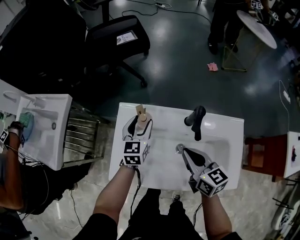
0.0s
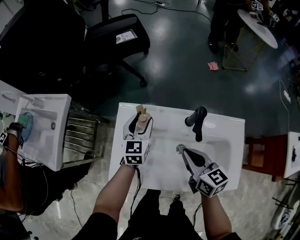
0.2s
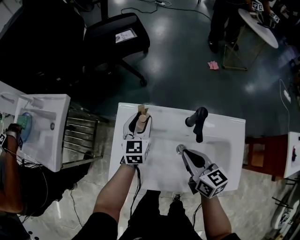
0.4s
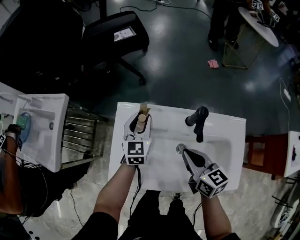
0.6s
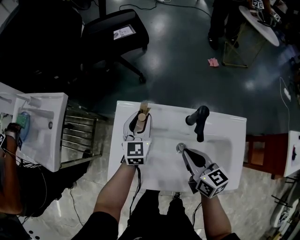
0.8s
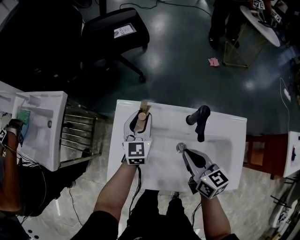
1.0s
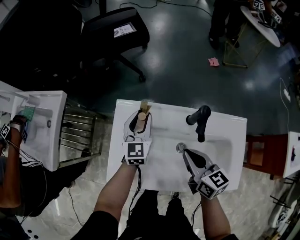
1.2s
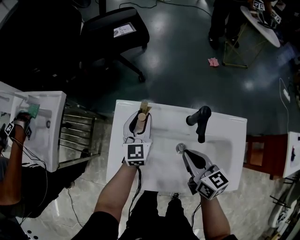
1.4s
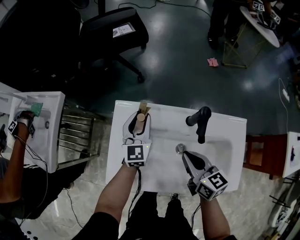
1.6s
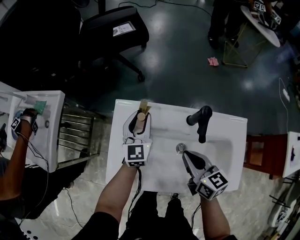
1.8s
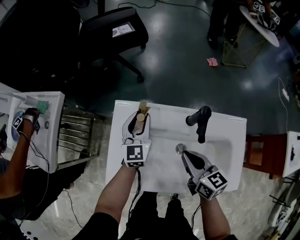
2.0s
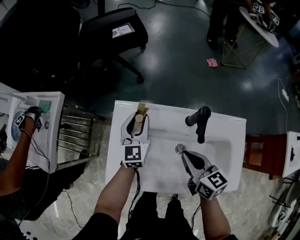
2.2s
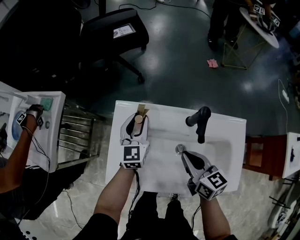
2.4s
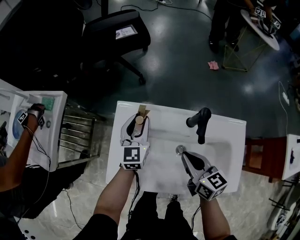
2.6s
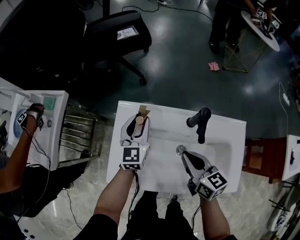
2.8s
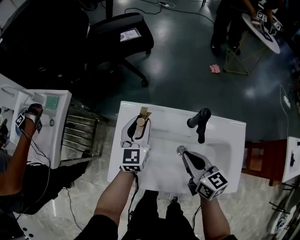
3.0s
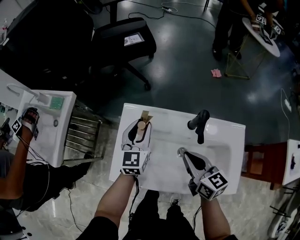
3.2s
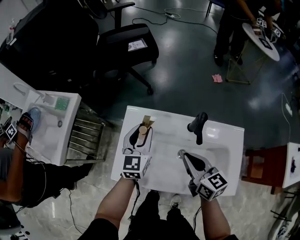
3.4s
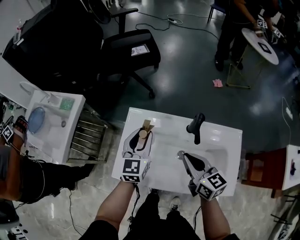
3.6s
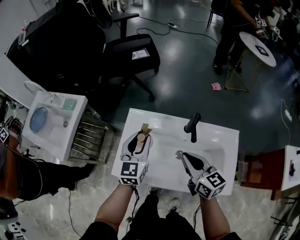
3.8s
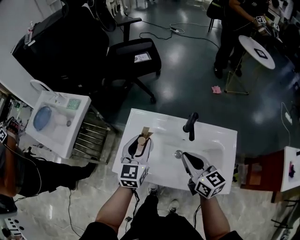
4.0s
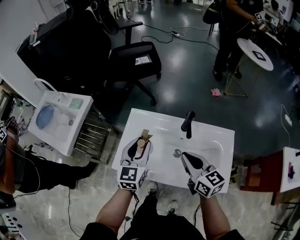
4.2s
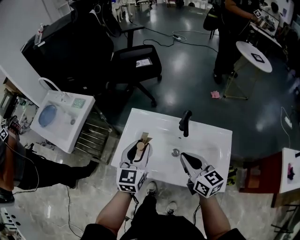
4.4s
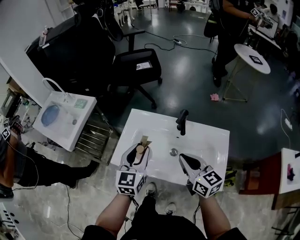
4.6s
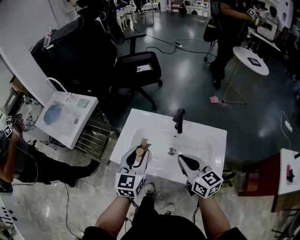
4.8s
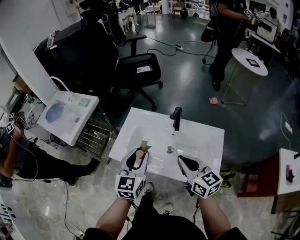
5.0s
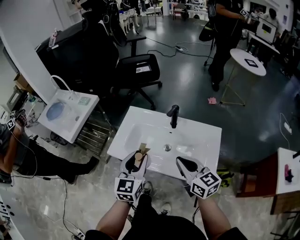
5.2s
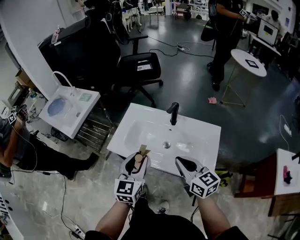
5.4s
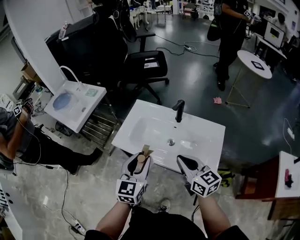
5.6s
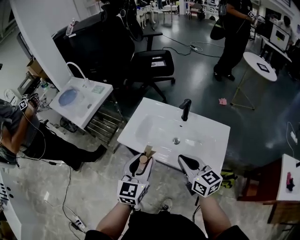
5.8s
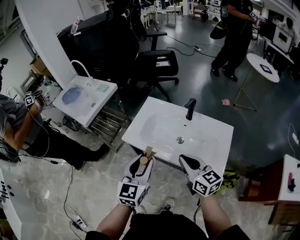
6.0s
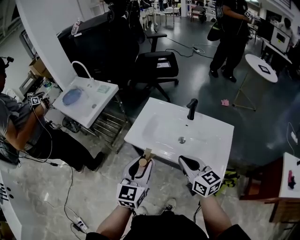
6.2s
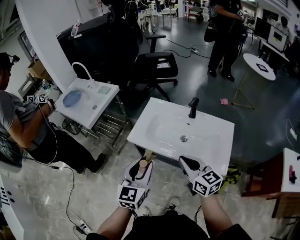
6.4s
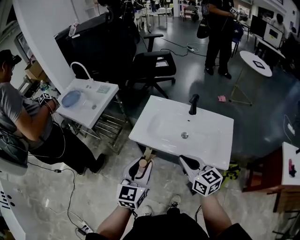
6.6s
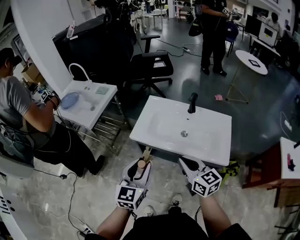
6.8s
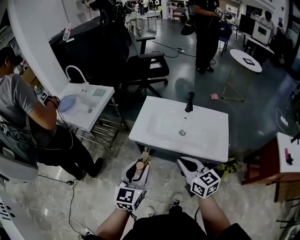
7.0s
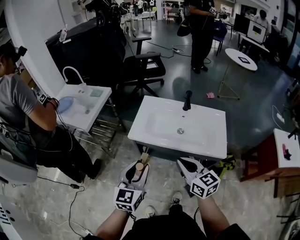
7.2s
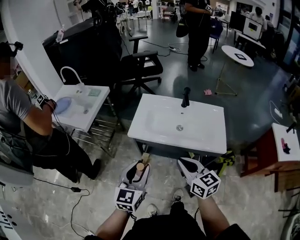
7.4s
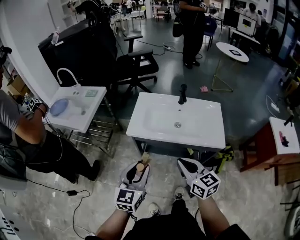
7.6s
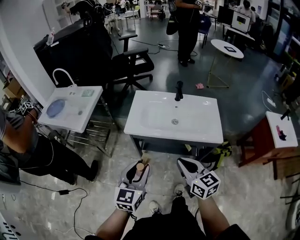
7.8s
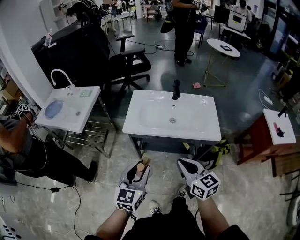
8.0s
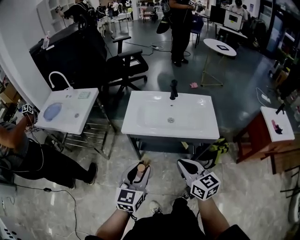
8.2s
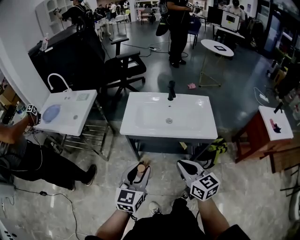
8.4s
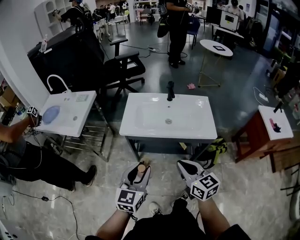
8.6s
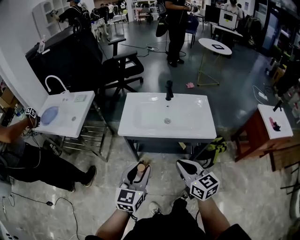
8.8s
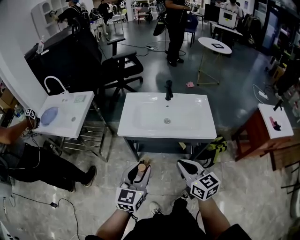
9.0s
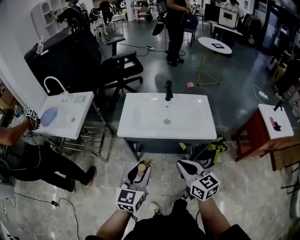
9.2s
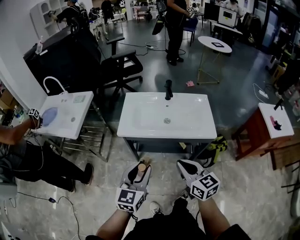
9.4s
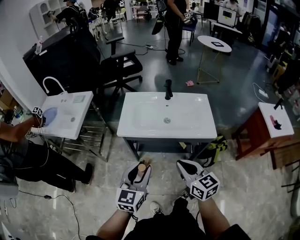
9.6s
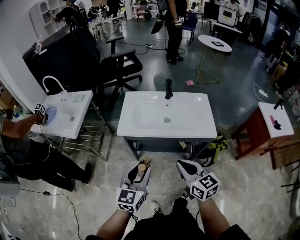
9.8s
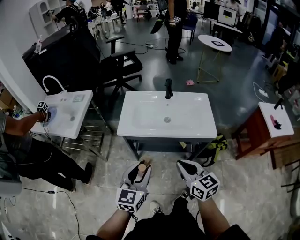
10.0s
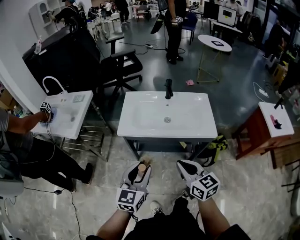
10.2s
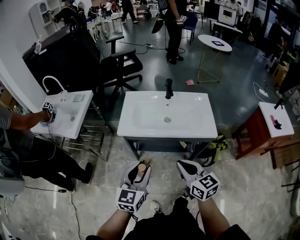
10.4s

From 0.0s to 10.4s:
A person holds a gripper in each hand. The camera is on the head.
From 0.0s to 1.4s: The left gripper closes its fingers.
From 1.4s to 3.0s: The grippers stay close to where they were, moving slightly.
From 3.0s to 4.4s: The left gripper goes roughly 20 cm backward and upward; the right gripper shifts about 15 cm upward and backward.
From 4.4s to 6.0s: The left gripper shifts roughly 20 cm backward, while the right gripper goes roughly 15 cm backward.
From 6.0s to 7.4s: Both grippers move to the left and backward, approximately 15 cm.
From 7.4s to 9.0s: The right gripper is displaced backward by approximately 5 cm.
From 9.0s to 10.4s: Both grippers stay about where they are.

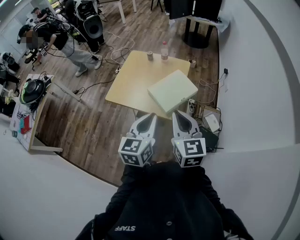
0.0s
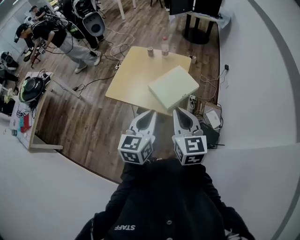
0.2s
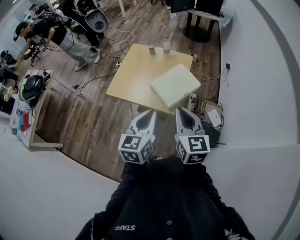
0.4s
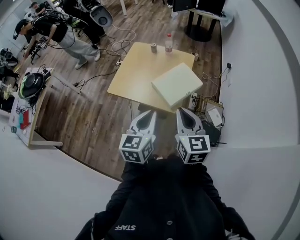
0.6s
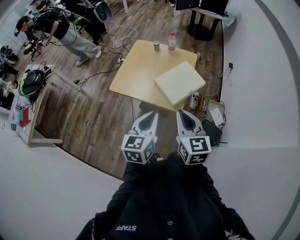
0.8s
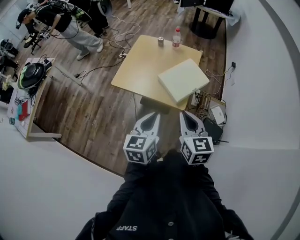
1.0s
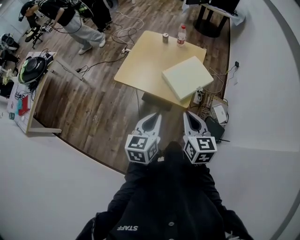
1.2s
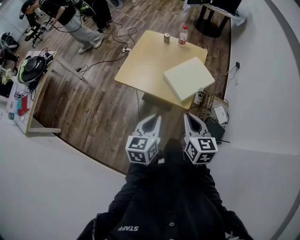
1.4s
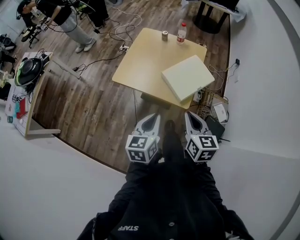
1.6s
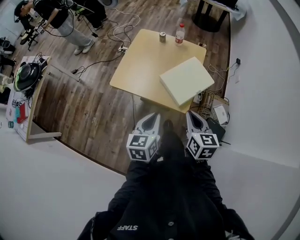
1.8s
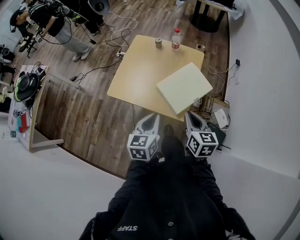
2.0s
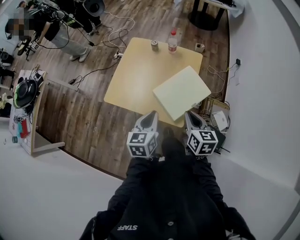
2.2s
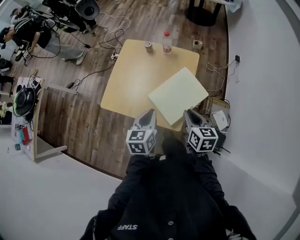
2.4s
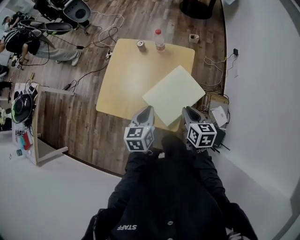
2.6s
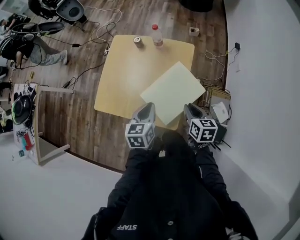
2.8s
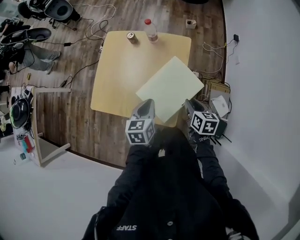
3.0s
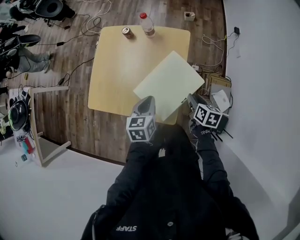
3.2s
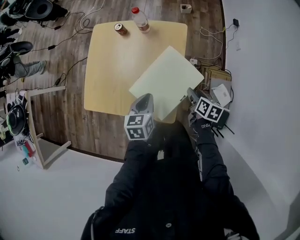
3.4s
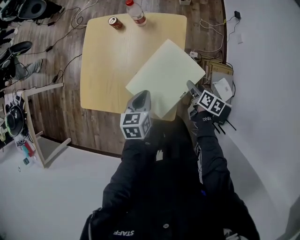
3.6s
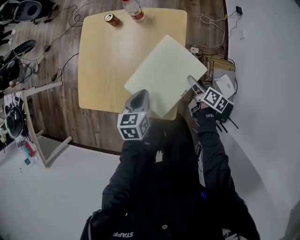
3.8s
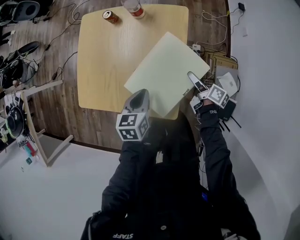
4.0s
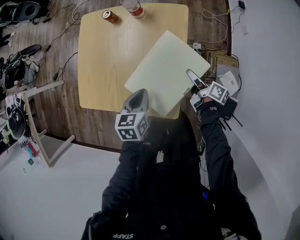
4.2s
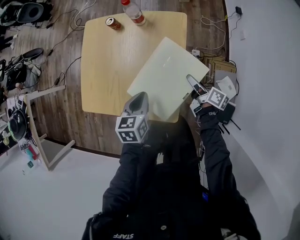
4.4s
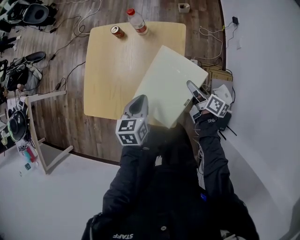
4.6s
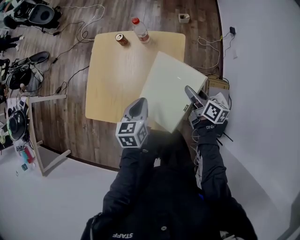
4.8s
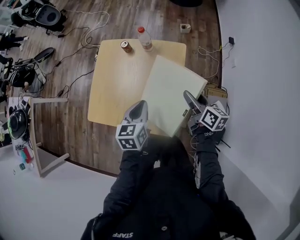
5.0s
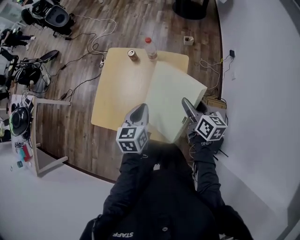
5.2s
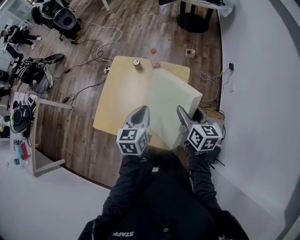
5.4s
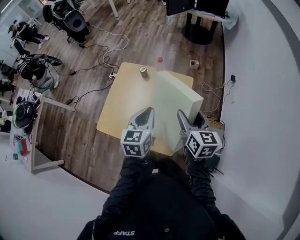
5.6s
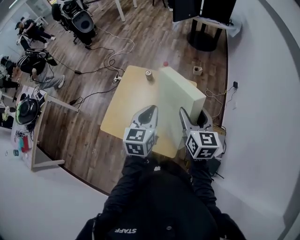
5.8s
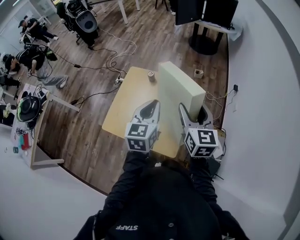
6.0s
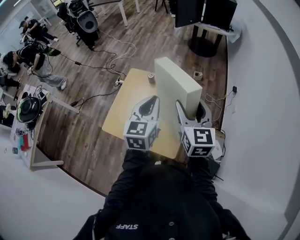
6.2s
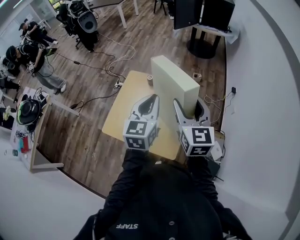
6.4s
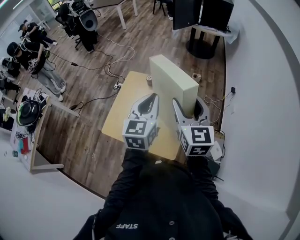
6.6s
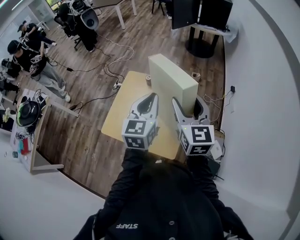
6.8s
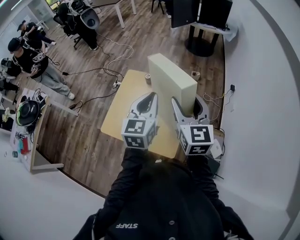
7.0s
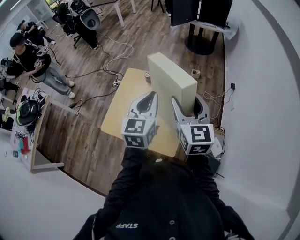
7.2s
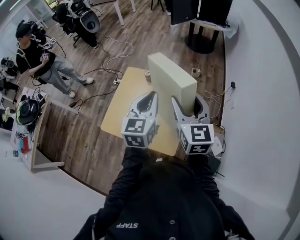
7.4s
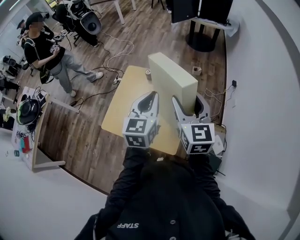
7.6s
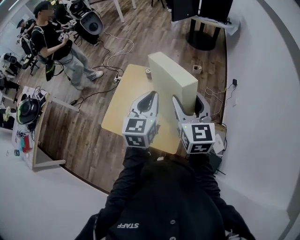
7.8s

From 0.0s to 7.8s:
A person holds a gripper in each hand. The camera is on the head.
From 0.0s to 1.6s: Both grippers move downward and to the left, about 15 cm.
From 1.6s to 3.2s: Both grippers travel together forward, downward and to the right, roughly 40 cm. The right gripper swivels about 40 degrees.
From 3.2s to 4.6s: The right gripper heads forward, covering approximately 5 cm, reaches roughly 10 cm downward, then returns, and turns by about 30 degrees.
From 4.6s to 6.2s: Both grippers travel together upward, approximately 35 cm. The left gripper rotates some 30 degrees. The right gripper rotates around the line of its fingers by roughly 60 degrees, counterclockwise from behind.
From 6.2s to 7.8s: There are only small adjustments of the grippers.

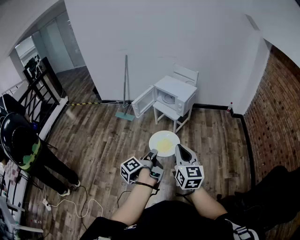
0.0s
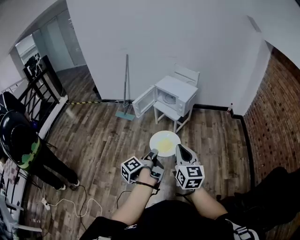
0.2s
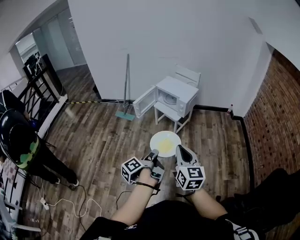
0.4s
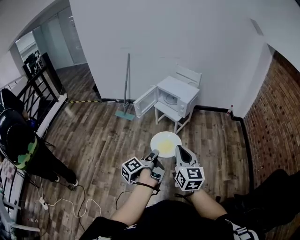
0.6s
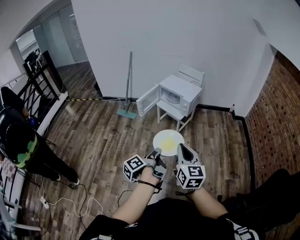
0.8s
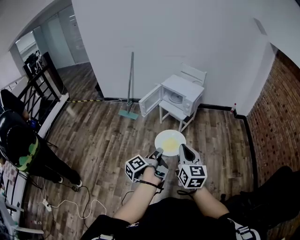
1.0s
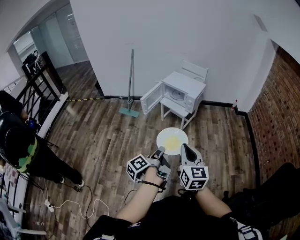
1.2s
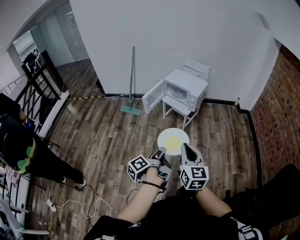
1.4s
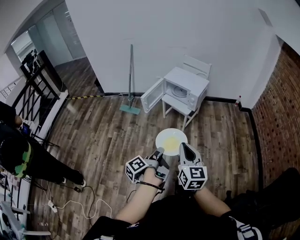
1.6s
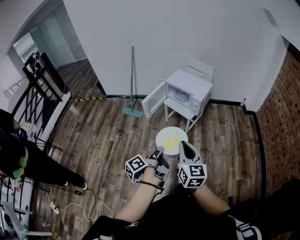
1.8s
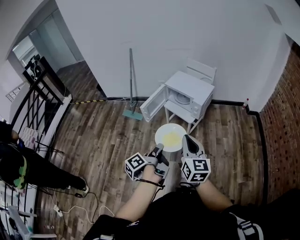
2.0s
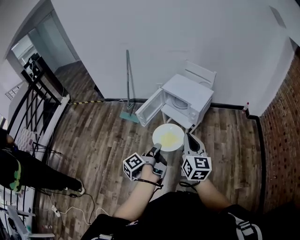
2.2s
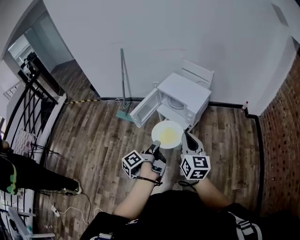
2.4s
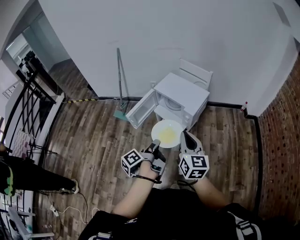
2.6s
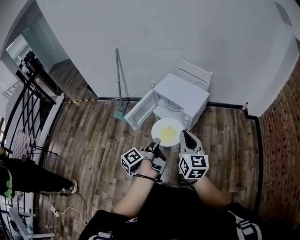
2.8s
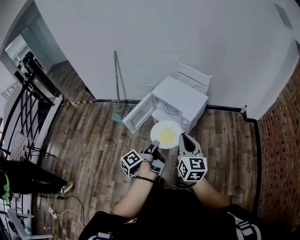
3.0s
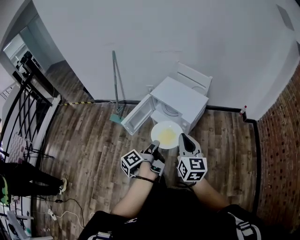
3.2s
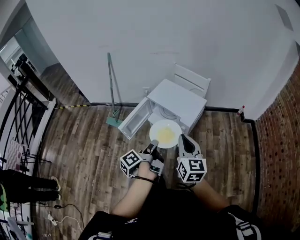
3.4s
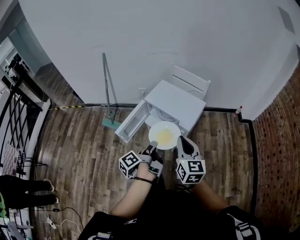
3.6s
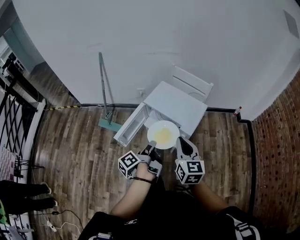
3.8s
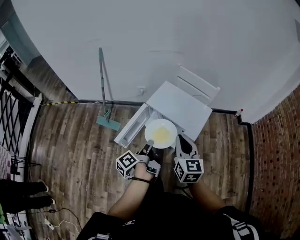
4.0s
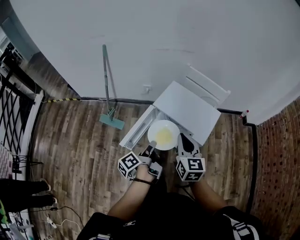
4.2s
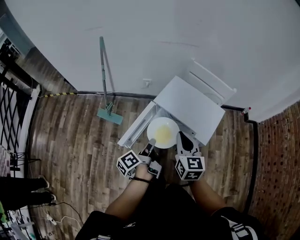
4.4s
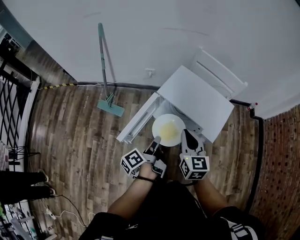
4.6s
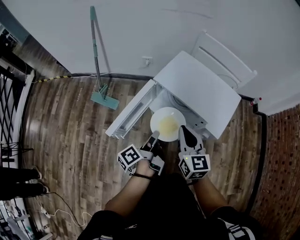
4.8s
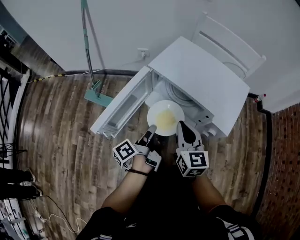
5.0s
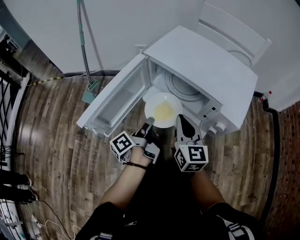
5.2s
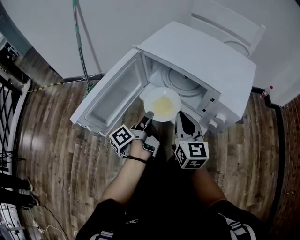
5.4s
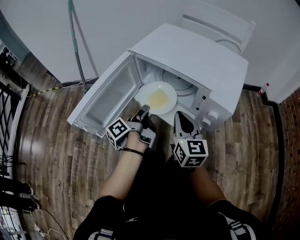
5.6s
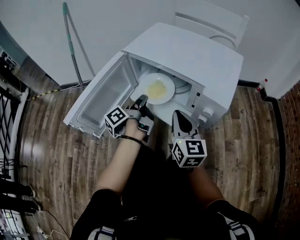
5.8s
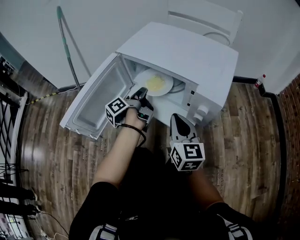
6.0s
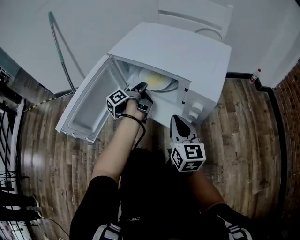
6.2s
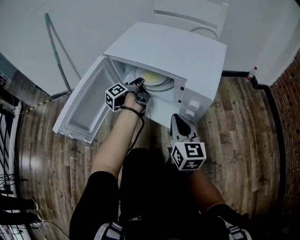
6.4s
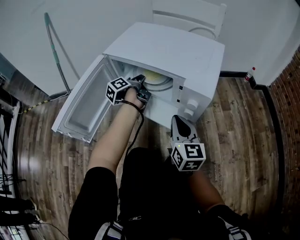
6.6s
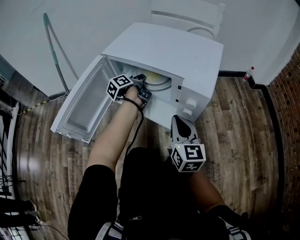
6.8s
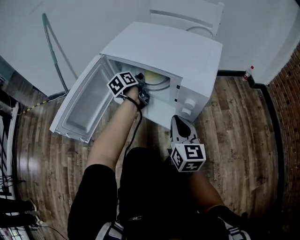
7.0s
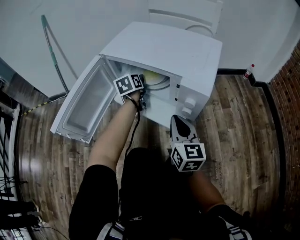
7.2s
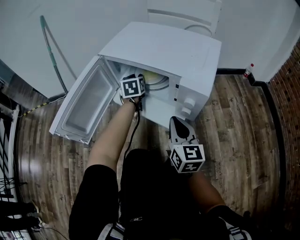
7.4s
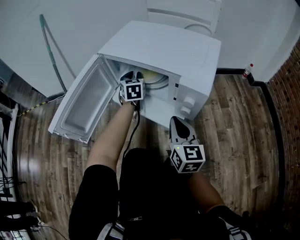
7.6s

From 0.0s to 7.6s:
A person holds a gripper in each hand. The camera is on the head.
From 0.0s to 1.6s: The right gripper changes place by roughly 15 cm.
From 1.6s to 3.0s: The right gripper ends up approximately 40 cm from where it was.
From 3.0s to 4.6s: The right gripper ends up roughly 35 cm from where it was.
From 4.6s to 6.0s: The right gripper is displaced downward by approximately 30 cm.
From 6.0s to 7.6s: The right gripper shifts by roughly 5 cm.
